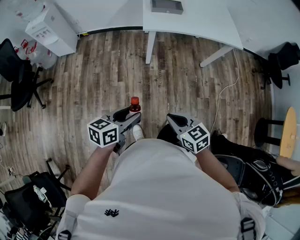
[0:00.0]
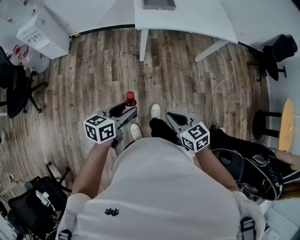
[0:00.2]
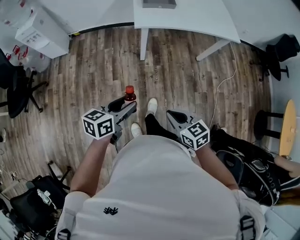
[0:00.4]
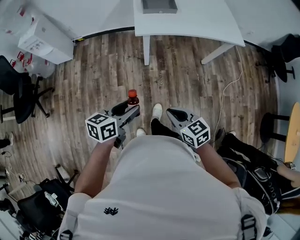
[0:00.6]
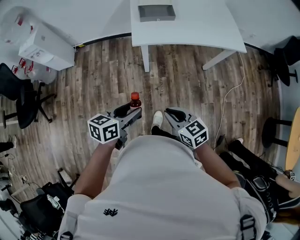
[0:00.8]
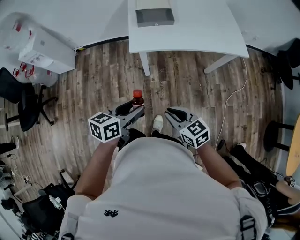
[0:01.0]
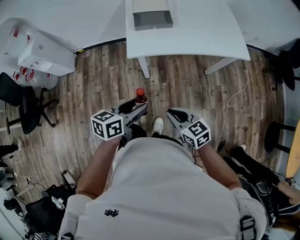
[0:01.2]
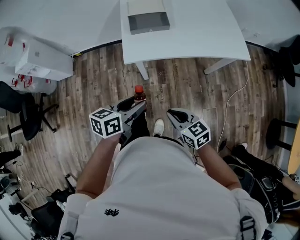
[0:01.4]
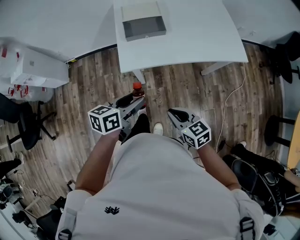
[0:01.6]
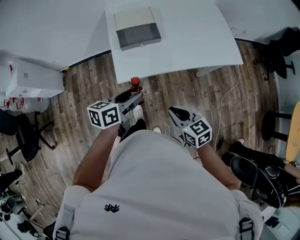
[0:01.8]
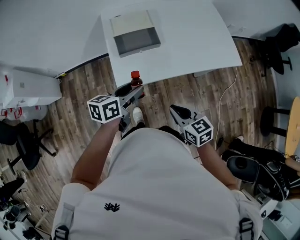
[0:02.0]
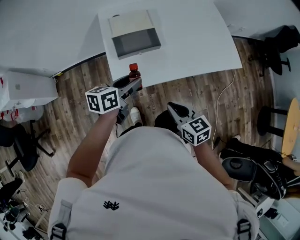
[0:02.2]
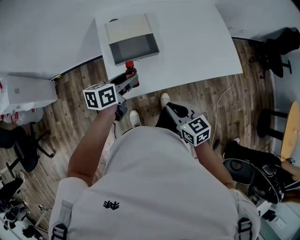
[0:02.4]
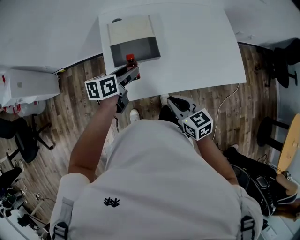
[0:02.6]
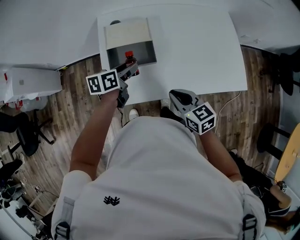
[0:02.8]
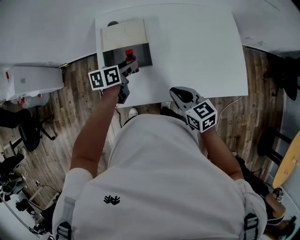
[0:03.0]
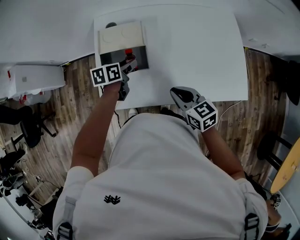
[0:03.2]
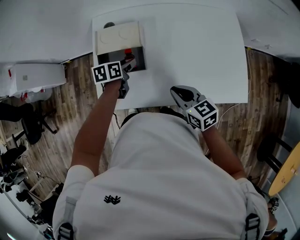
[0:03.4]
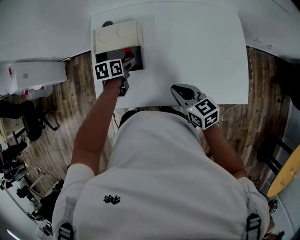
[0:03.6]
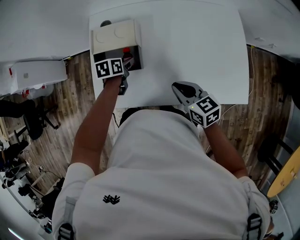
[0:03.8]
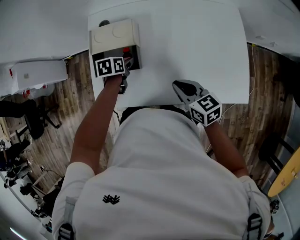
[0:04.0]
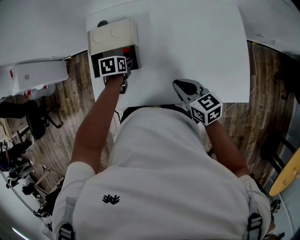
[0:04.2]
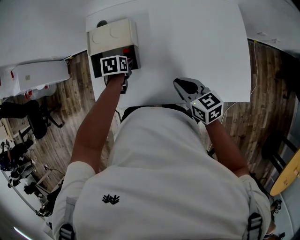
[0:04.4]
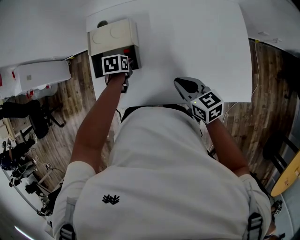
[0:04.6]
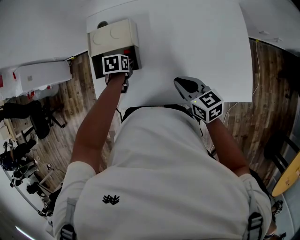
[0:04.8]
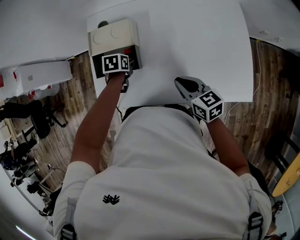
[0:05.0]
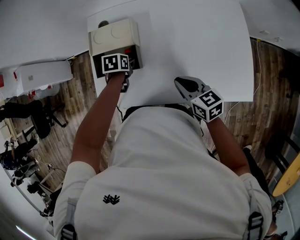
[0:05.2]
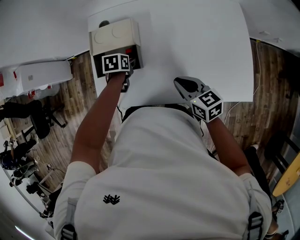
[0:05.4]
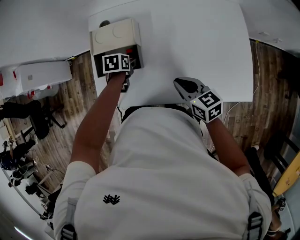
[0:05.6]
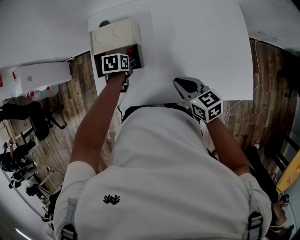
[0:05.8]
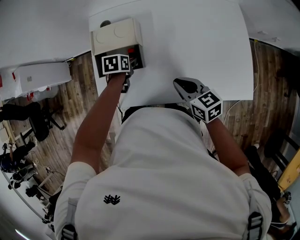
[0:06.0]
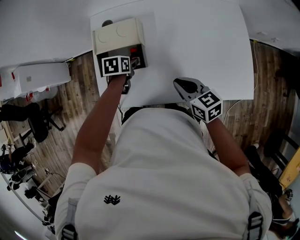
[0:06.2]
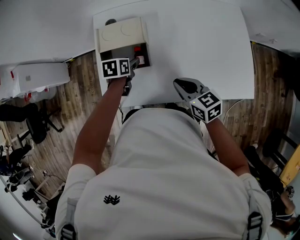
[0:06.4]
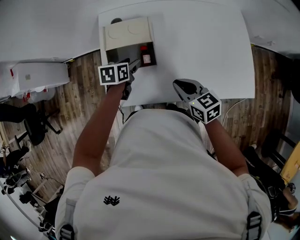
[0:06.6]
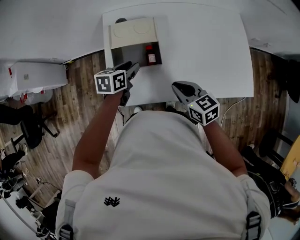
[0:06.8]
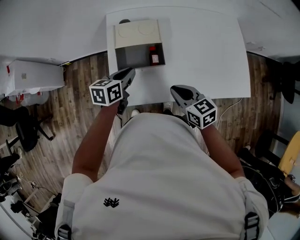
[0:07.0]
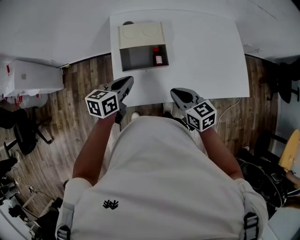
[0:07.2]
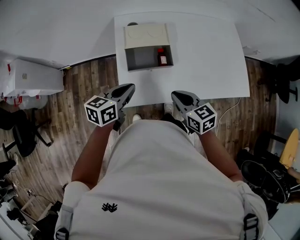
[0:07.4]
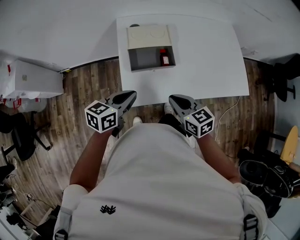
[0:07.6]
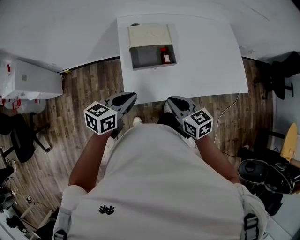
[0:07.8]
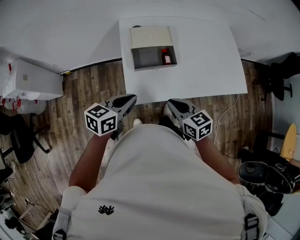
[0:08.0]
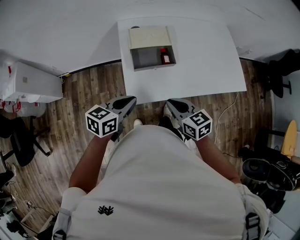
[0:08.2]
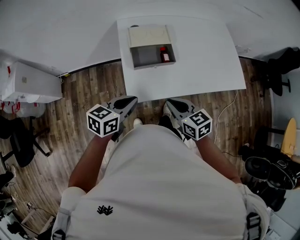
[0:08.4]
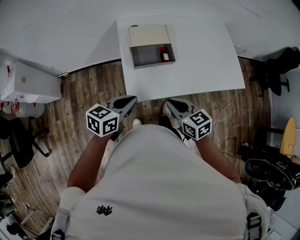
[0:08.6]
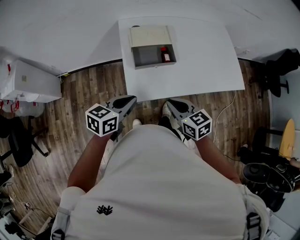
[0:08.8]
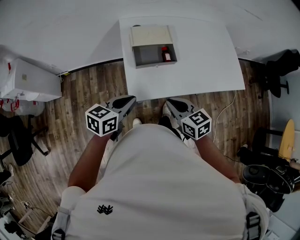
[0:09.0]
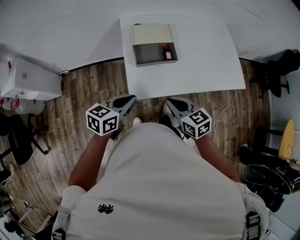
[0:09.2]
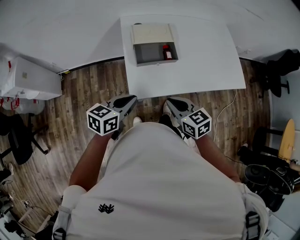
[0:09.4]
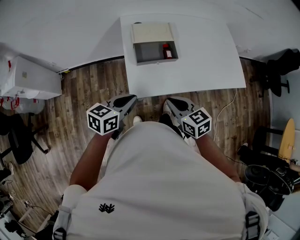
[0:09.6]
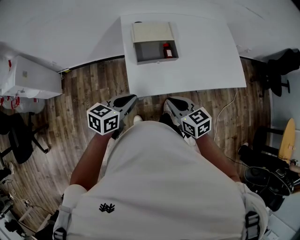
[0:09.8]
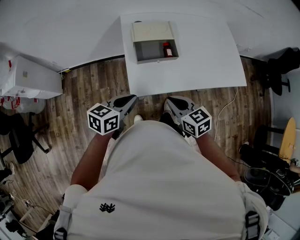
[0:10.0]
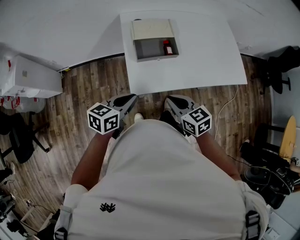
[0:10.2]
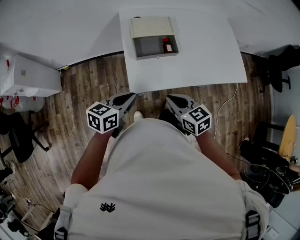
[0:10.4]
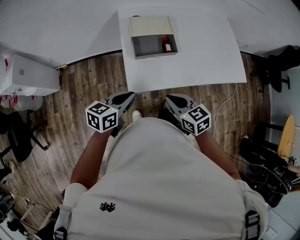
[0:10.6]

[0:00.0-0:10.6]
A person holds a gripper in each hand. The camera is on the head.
0:00.0 to 0:01.6: The grippers both shift forward by about 30 cm.
0:01.6 to 0:03.0: Both grippers travel together forward, approximately 30 cm.
0:03.0 to 0:04.6: The left gripper moves downward, roughly 10 cm, and tips its fingers downward by roughly 30 degrees. Meanwhile the right gripper heads to the right, covering roughly 10 cm.
0:04.6 to 0:06.0: The grippers stay close to where they were, moving slightly.
0:06.0 to 0:07.6: The left gripper heads backward, upward and to the left, covering some 25 cm, angles its fingers upward, by some 40 degrees, and closes; the right gripper heads to the left and backward, covering some 20 cm.
0:07.6 to 0:09.0: Both grippers move backward, roughly 5 cm.
0:09.0 to 0:10.6: The grippers move only a little.

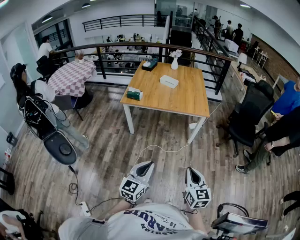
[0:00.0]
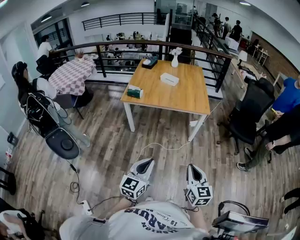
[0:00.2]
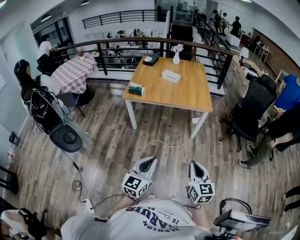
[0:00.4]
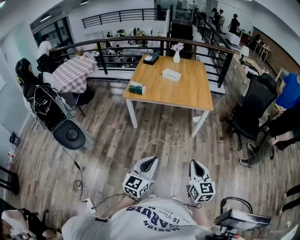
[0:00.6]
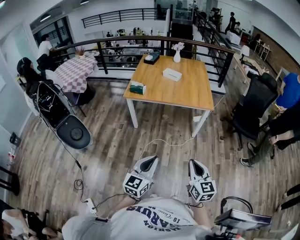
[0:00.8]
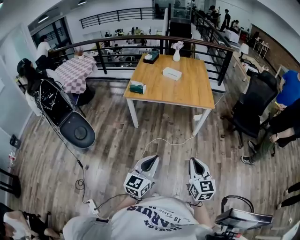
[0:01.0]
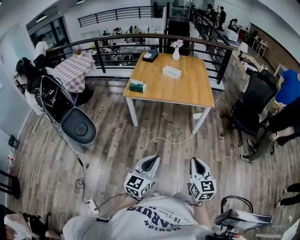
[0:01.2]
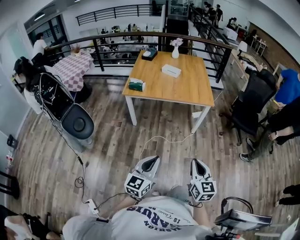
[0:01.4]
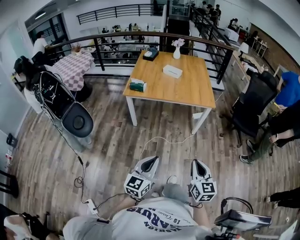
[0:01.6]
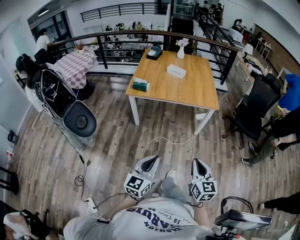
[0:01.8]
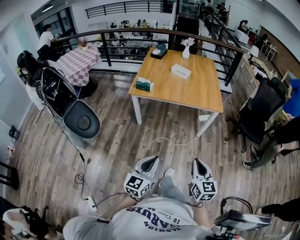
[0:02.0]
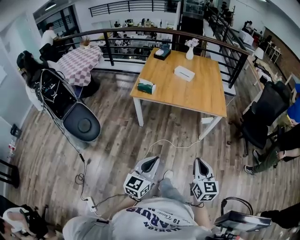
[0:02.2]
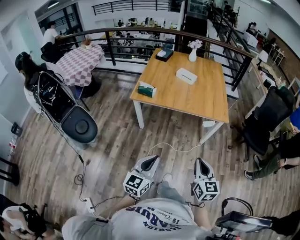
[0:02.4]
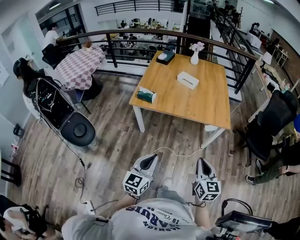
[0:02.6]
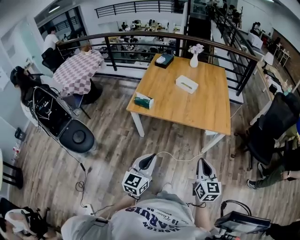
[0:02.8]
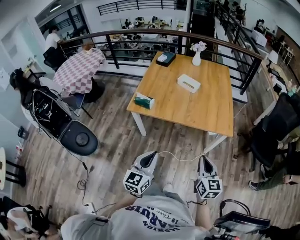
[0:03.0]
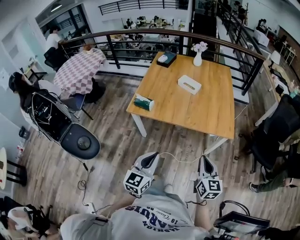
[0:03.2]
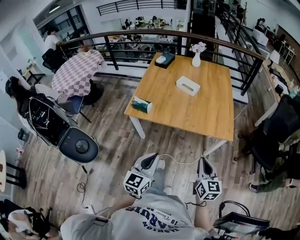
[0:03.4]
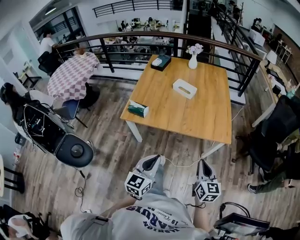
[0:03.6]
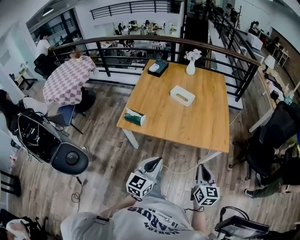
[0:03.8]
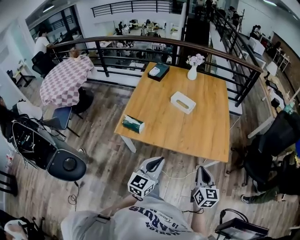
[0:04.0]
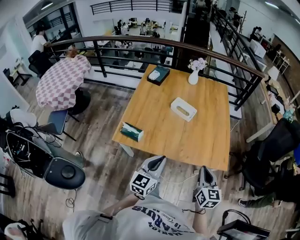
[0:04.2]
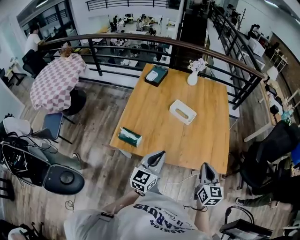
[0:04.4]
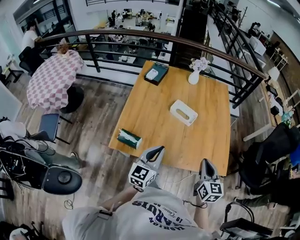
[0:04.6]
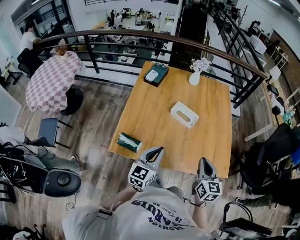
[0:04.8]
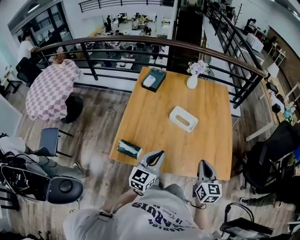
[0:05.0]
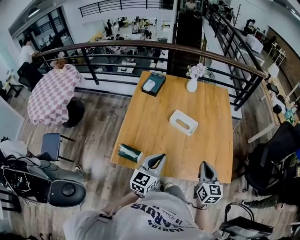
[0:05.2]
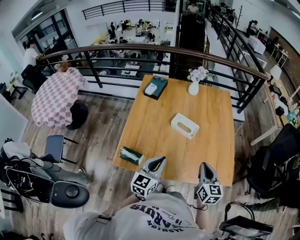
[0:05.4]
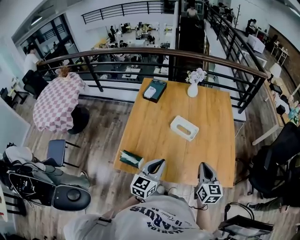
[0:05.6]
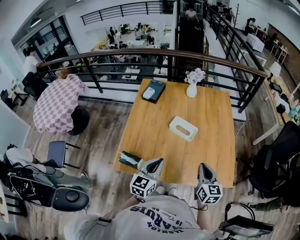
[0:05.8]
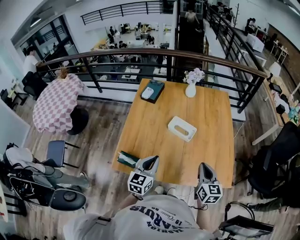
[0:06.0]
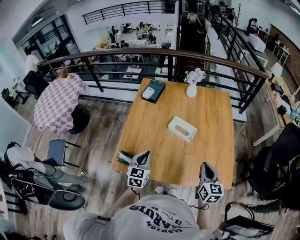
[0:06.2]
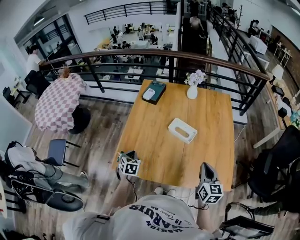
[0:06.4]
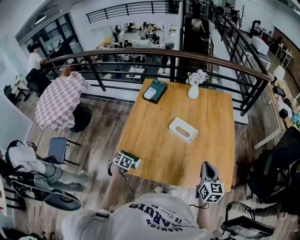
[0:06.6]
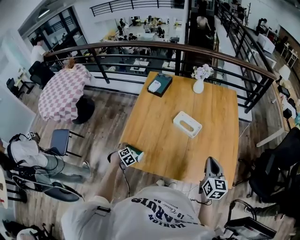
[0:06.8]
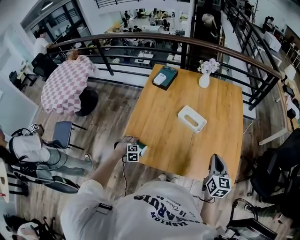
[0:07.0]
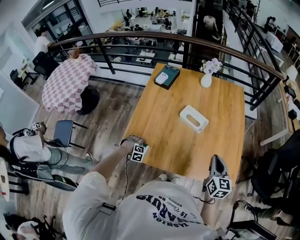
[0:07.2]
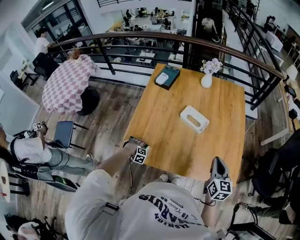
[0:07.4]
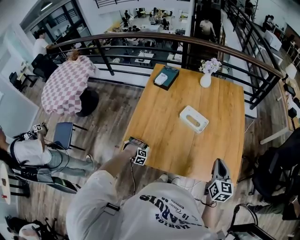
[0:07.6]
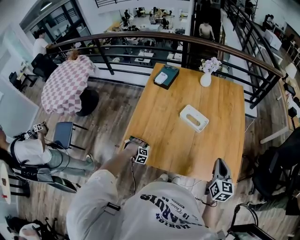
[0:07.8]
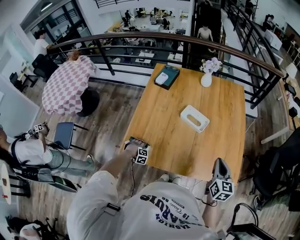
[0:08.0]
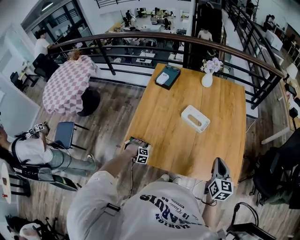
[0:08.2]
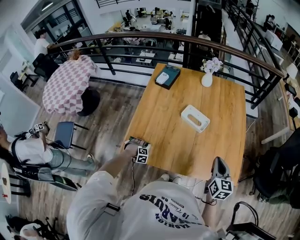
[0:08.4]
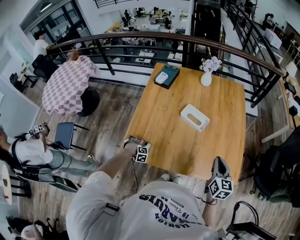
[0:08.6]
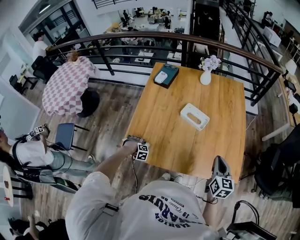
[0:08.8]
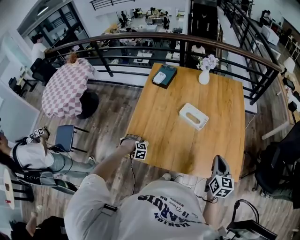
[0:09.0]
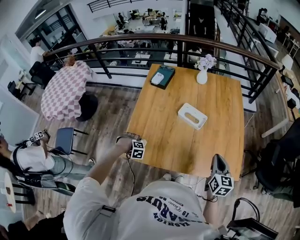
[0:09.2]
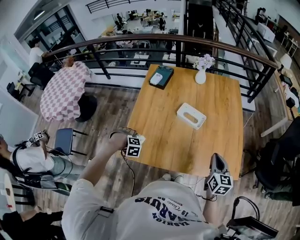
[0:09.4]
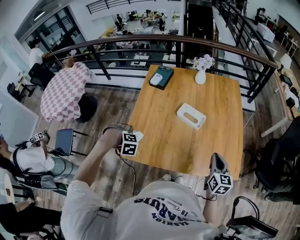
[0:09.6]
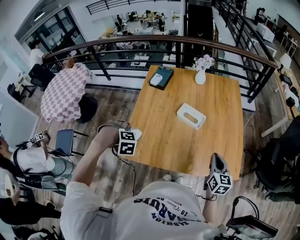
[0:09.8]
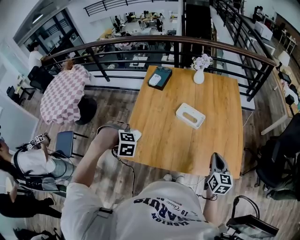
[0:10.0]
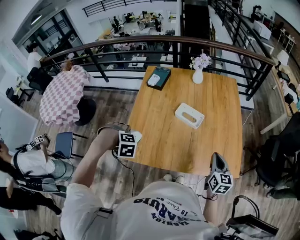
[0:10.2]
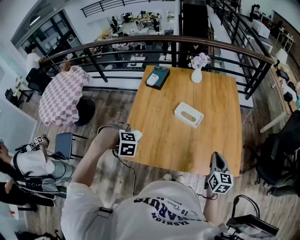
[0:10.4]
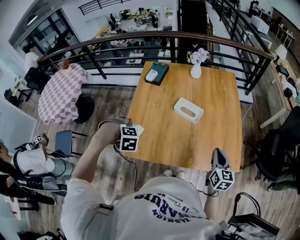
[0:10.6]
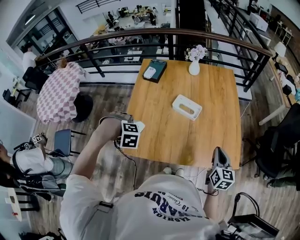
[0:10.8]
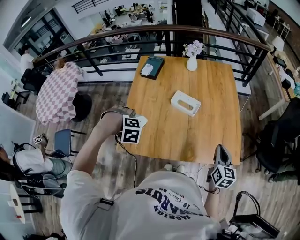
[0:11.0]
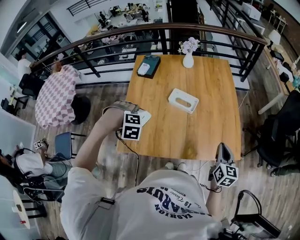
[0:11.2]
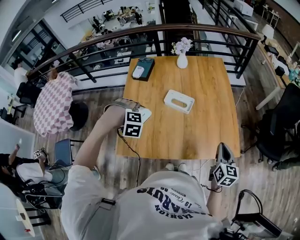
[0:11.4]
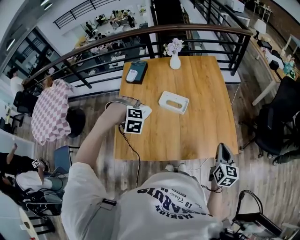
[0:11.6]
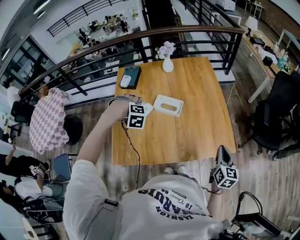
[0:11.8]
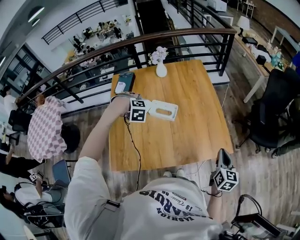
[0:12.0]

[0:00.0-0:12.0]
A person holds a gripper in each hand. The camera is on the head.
0:00.0 to 0:01.6: The right gripper moves approximately 5 cm. The left gripper changes place by about 5 cm.
0:01.6 to 0:03.0: The two grippers go some 35 cm forward.
0:03.0 to 0:04.4: Both grippers move forward, roughly 35 cm.
0:04.4 to 0:06.0: Both grippers move forward, about 15 cm.
0:06.0 to 0:07.6: The left gripper heads downward, covering approximately 40 cm, tilts its fingers approximately 60 degrees downward, and opens.
0:07.6 to 0:09.0: The left gripper moves upward, some 10 cm.
0:09.0 to 0:10.4: The left gripper moves upward, some 25 cm.
0:10.4 to 0:12.0: The left gripper changes place by about 30 cm, and rotates approximately 20 degrees; the right gripper ends up some 15 cm from where it was, and changes its angle by some 20 degrees.

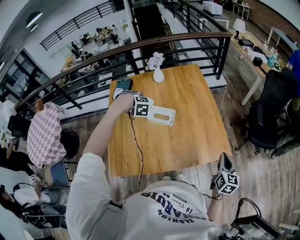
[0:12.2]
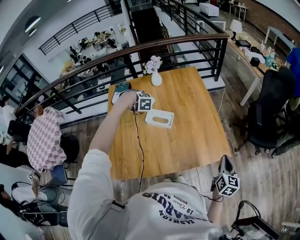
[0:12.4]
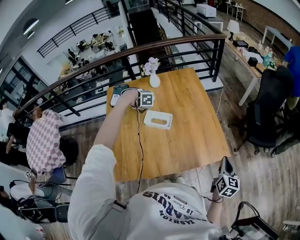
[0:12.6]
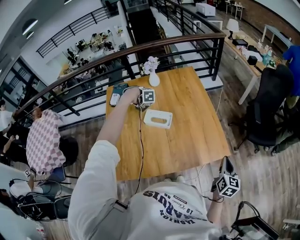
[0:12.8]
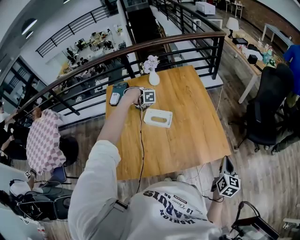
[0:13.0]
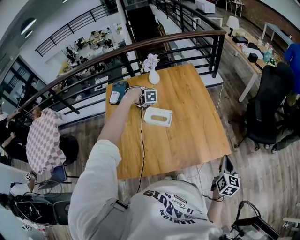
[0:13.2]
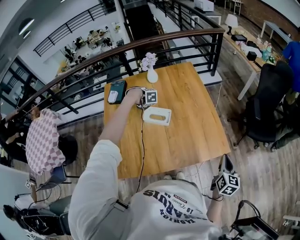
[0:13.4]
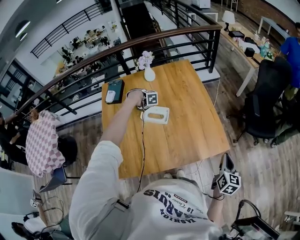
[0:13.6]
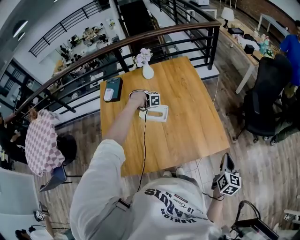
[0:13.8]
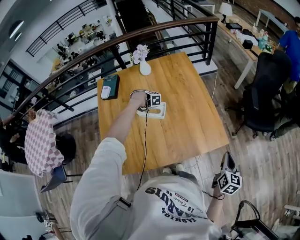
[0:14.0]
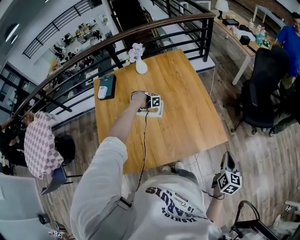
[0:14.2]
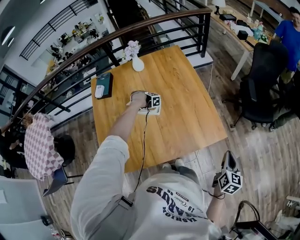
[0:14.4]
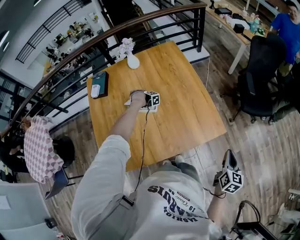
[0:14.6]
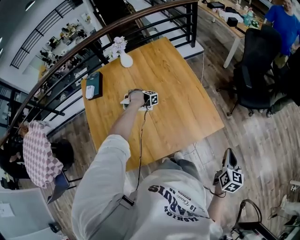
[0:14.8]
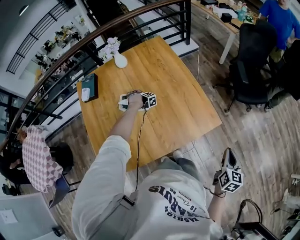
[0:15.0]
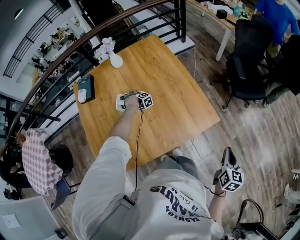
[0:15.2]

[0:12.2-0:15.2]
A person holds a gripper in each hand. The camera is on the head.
0:12.2 to 0:13.8: The left gripper is displaced downward, to the right and forward by about 20 cm.
0:13.8 to 0:15.2: The right gripper heads backward, covering some 10 cm, while the left gripper heads downward, covering some 15 cm.
